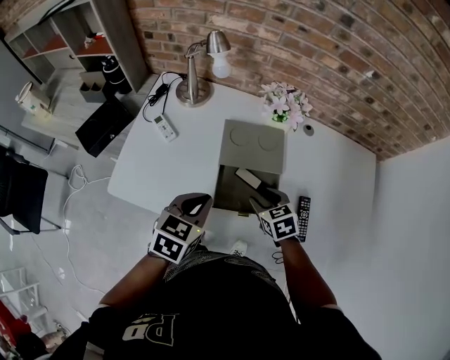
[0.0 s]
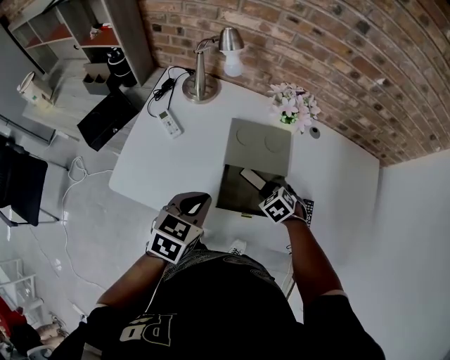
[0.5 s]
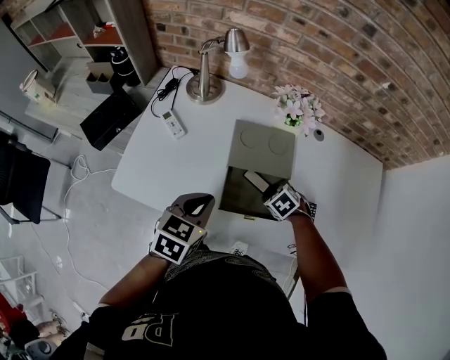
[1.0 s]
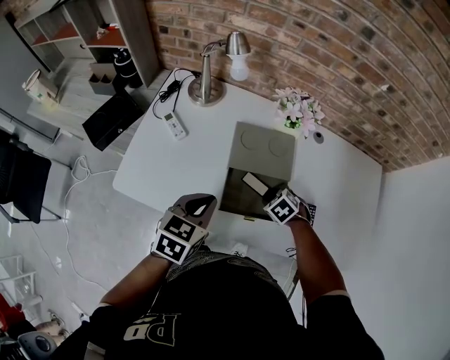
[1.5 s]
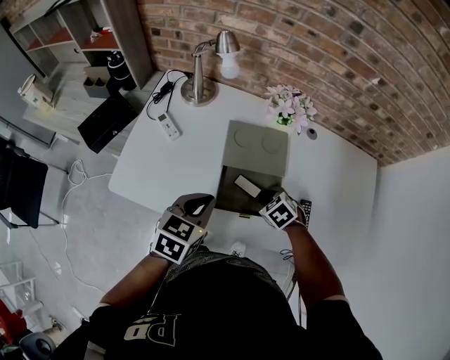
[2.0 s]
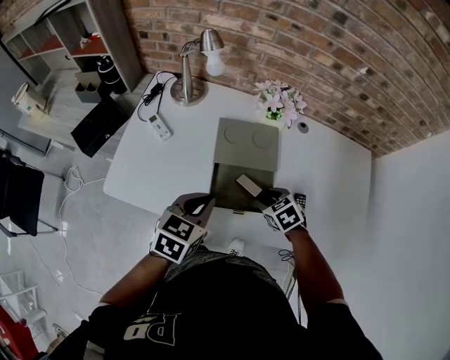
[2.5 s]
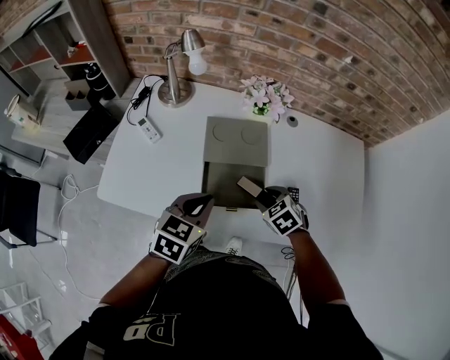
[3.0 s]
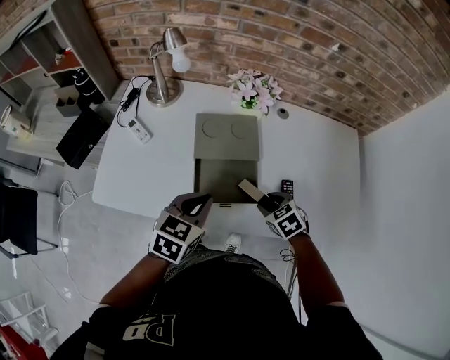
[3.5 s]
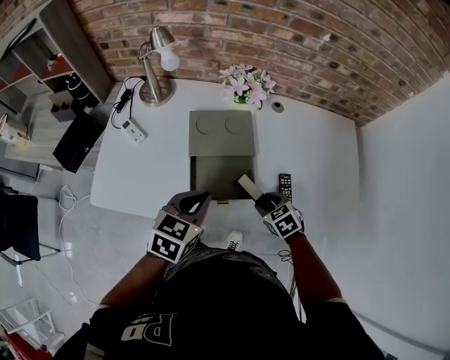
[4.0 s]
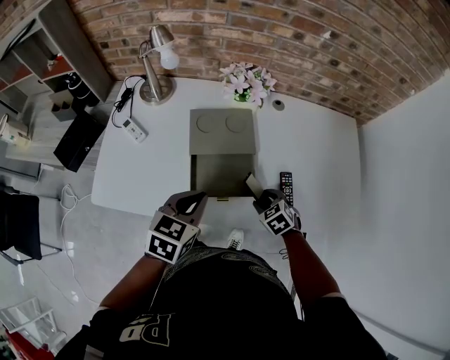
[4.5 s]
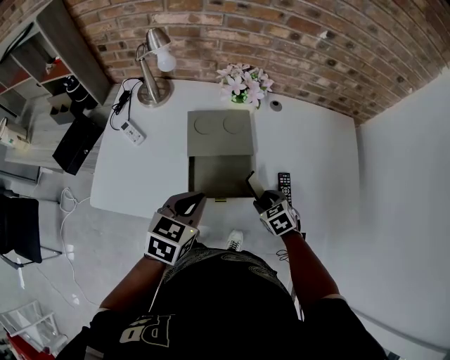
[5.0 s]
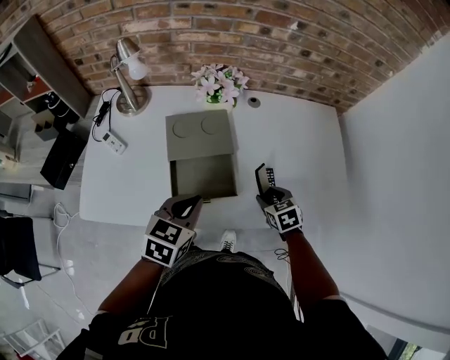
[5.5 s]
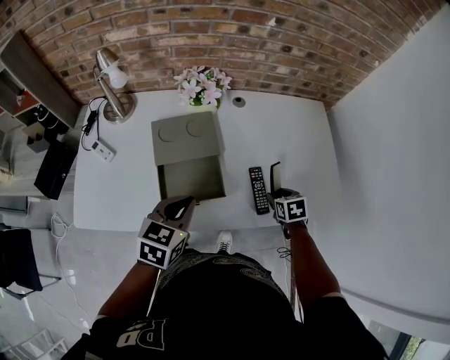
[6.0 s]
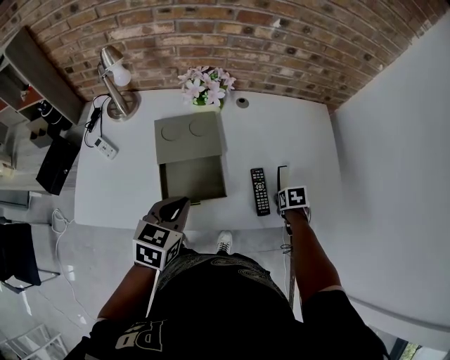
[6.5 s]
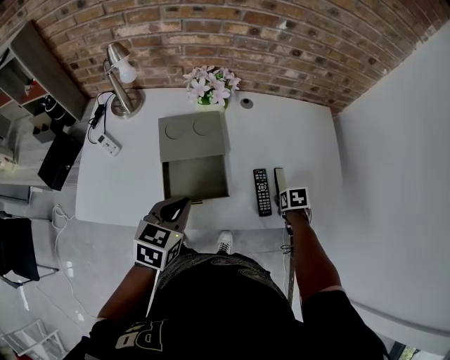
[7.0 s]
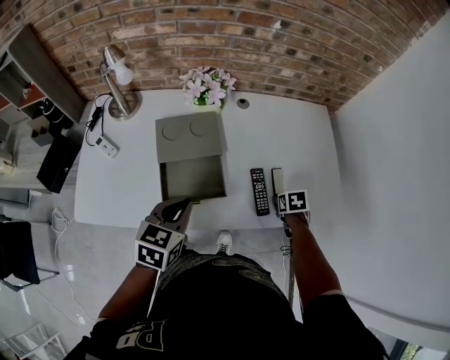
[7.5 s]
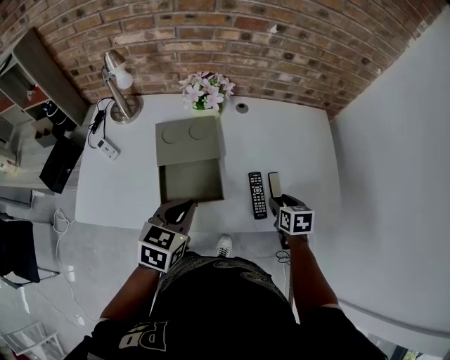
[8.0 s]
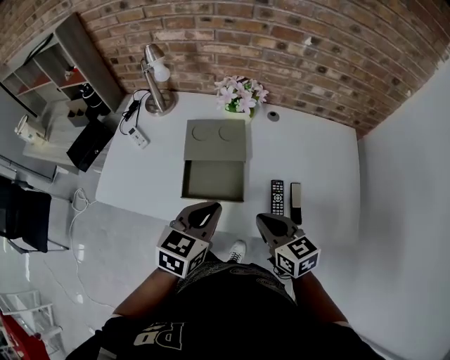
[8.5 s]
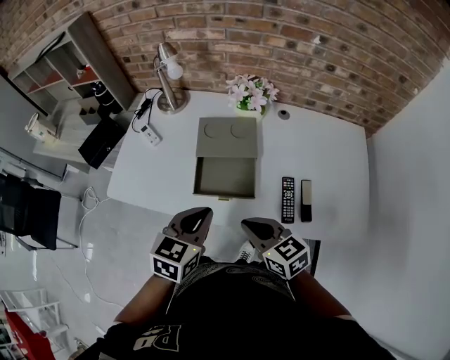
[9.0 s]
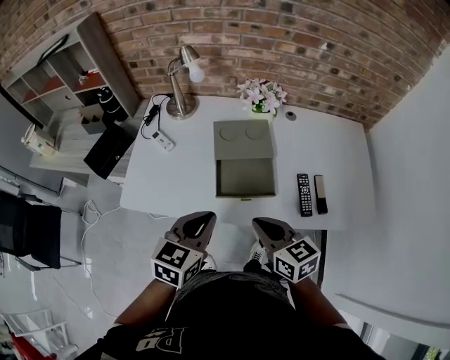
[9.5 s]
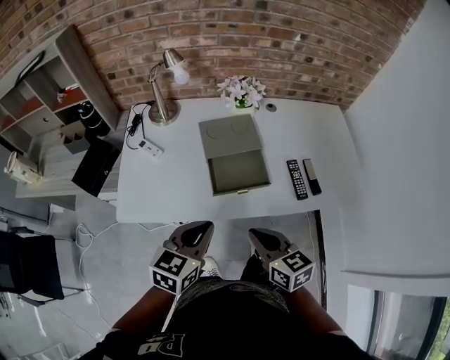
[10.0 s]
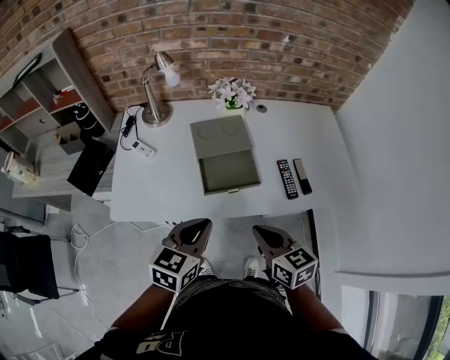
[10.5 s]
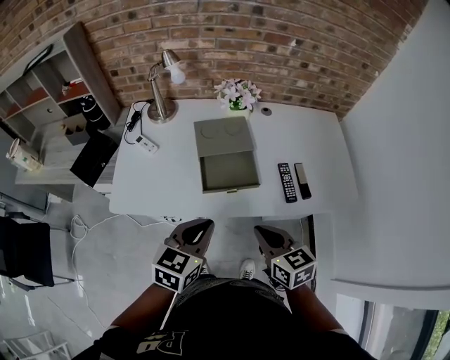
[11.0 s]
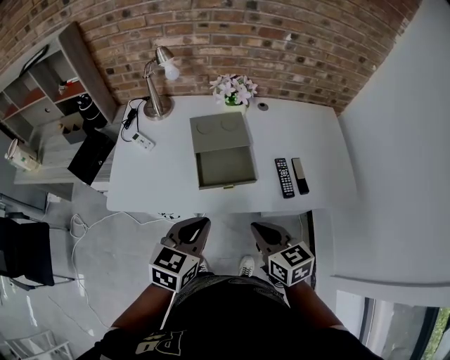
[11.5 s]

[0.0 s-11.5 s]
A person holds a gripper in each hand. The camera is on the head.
0.0 to 2.0 s: The right gripper travels downward by roughly 5 cm, and swivels roughly 30 degrees.
2.0 to 4.0 s: The right gripper goes roughly 10 cm to the right and backward; the left gripper heads to the right, covering some 10 cm.
4.0 to 6.0 s: The right gripper shifts some 15 cm to the right, and rotates about 30 degrees. Meanwhile the left gripper goes roughly 5 cm to the right.
6.0 to 7.5 s: The grippers move only a little.
7.5 to 9.5 s: The right gripper shifts by roughly 40 cm, points its fingers about 50 degrees further upward, and closes up. Meanwhile the left gripper shifts by some 15 cm.
9.5 to 11.5 s: The two grippers go roughly 5 cm backward.

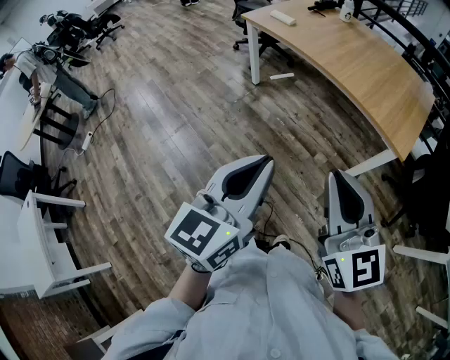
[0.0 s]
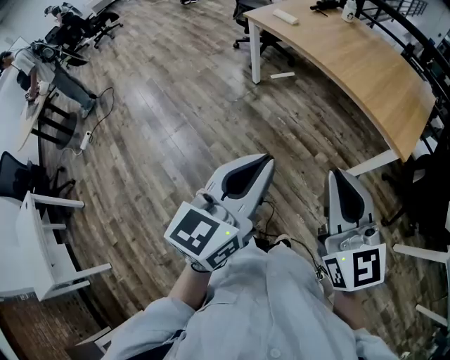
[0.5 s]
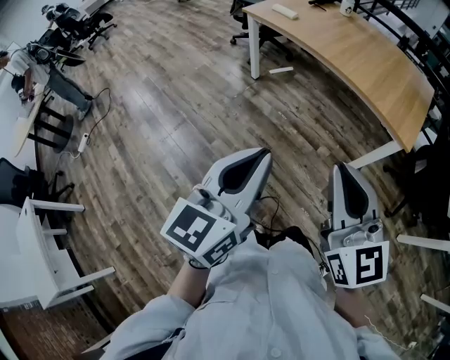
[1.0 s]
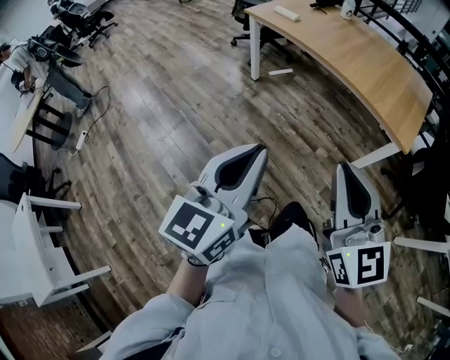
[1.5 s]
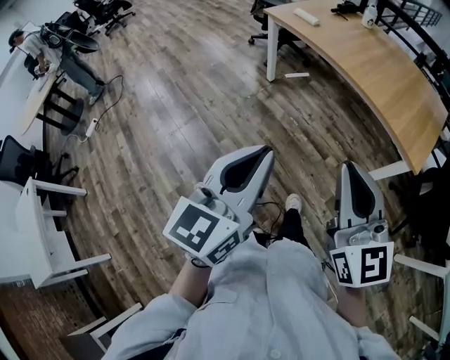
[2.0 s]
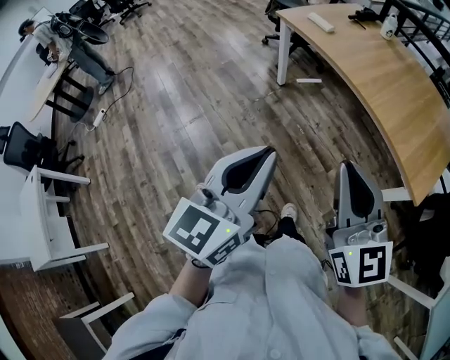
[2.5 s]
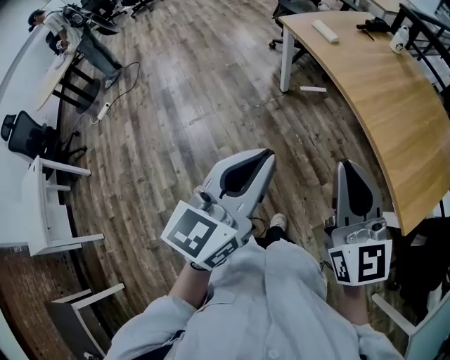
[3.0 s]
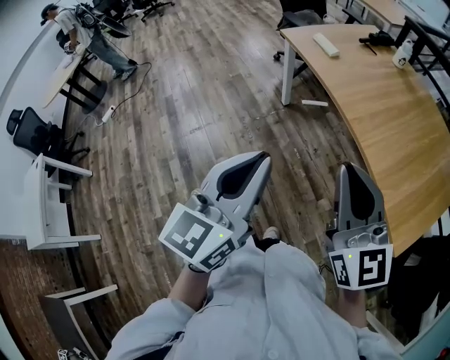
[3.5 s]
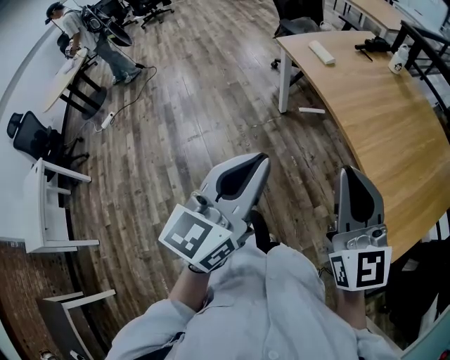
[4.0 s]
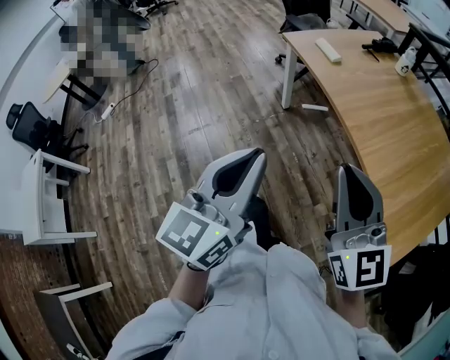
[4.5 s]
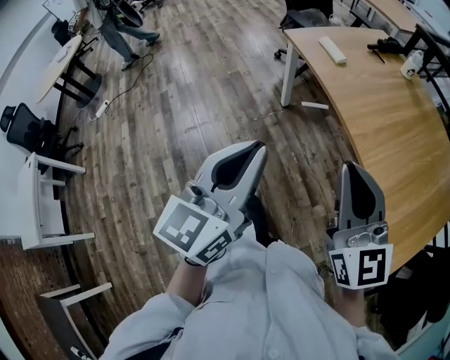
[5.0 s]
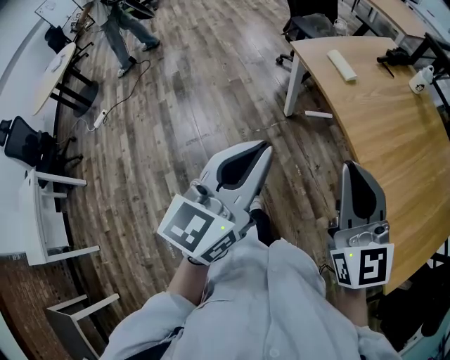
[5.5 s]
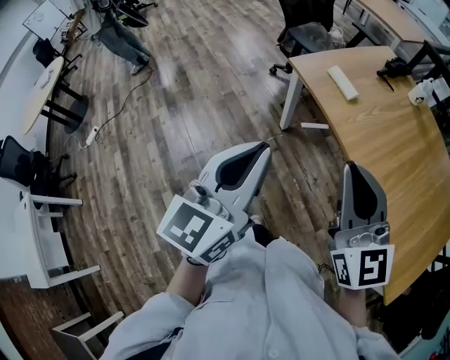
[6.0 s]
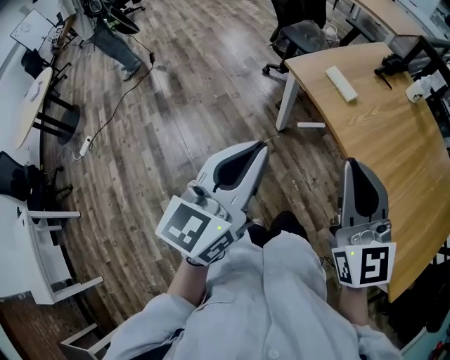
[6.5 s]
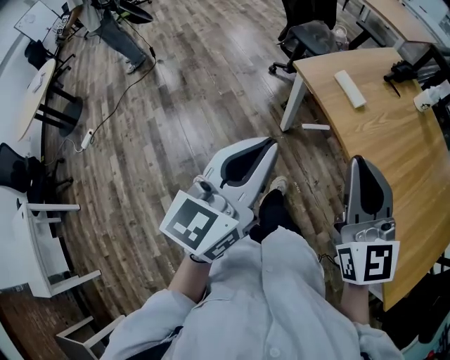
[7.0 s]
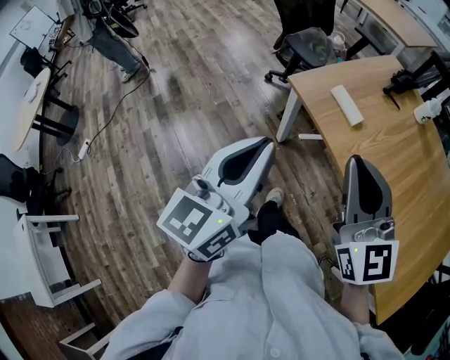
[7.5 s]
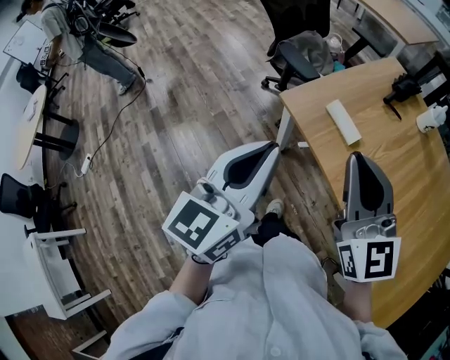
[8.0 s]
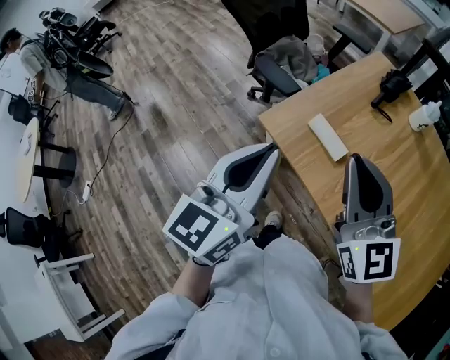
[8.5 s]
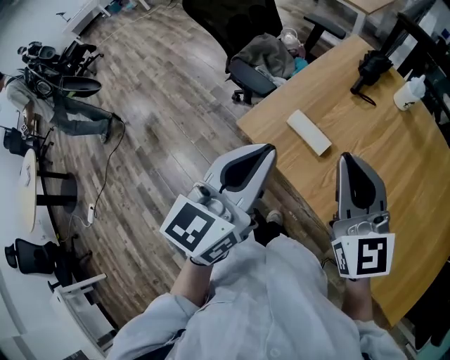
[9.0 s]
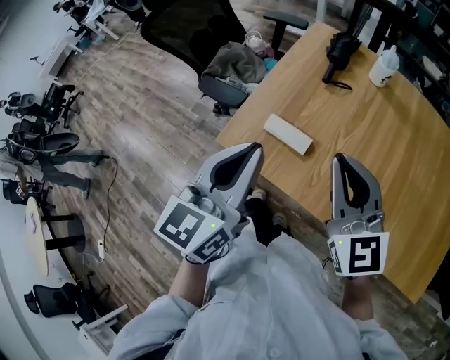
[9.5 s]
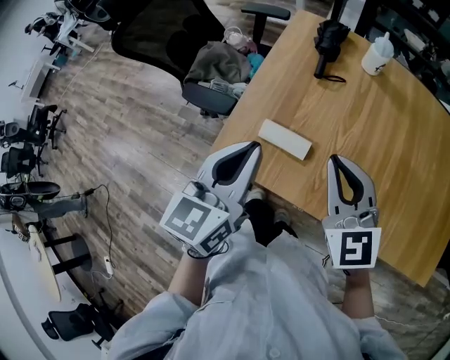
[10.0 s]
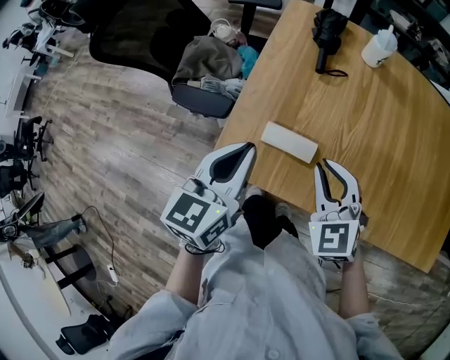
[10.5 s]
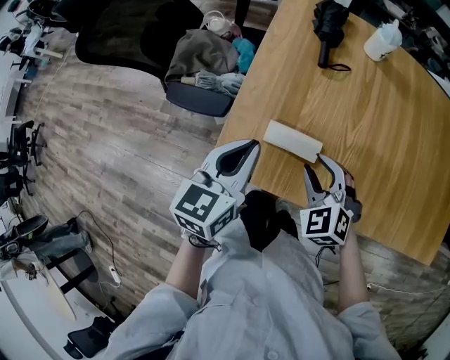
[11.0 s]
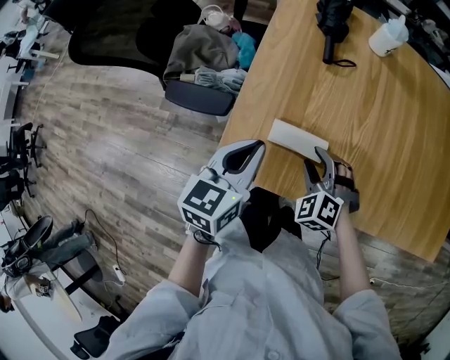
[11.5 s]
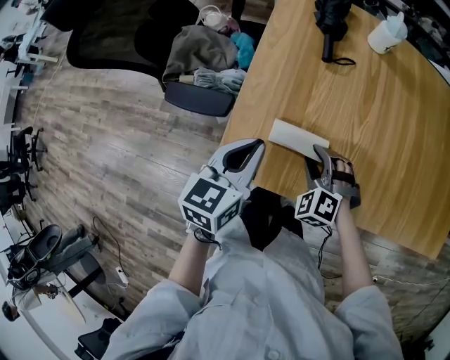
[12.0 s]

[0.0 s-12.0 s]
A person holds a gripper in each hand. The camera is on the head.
0.0 to 2.0 s: Both grippers move to the left, approximately 5 cm.
2.0 to 4.0 s: The grippers both shift forward and to the right by some 25 cm.
4.0 to 6.0 s: The grippers both shift forward and to the left by some 30 cm.
6.0 to 8.0 s: The grippers both shift forward by approximately 25 cm.
8.0 to 10.0 s: The right gripper ends up about 20 cm from where it was, and turns by about 30 degrees, while the left gripper ends up approximately 25 cm from where it was, and rotates roughly 30 degrees.
10.0 to 12.0 s: The left gripper travels downward by about 15 cm. The right gripper moves downward, roughly 25 cm, angles its fingers downward, by roughly 40 degrees, and opens.

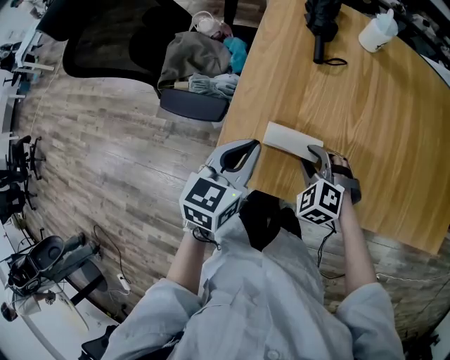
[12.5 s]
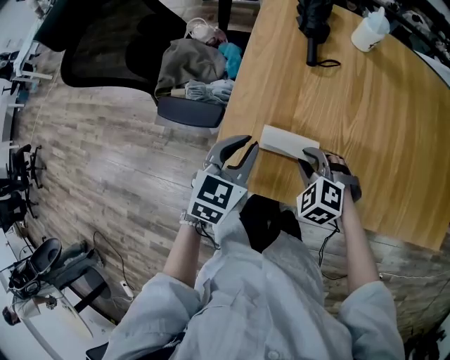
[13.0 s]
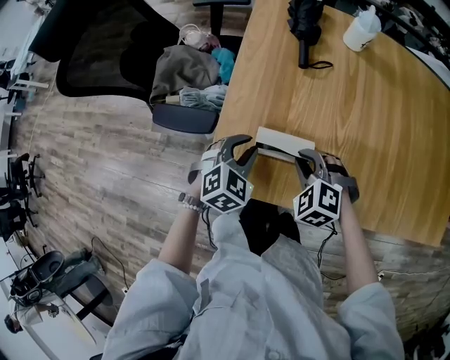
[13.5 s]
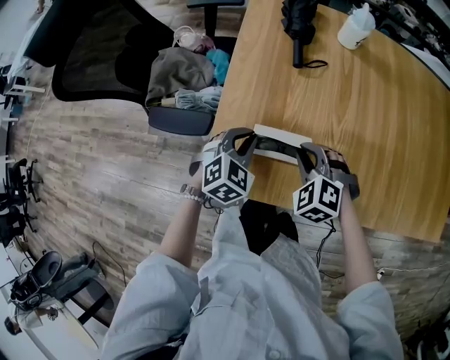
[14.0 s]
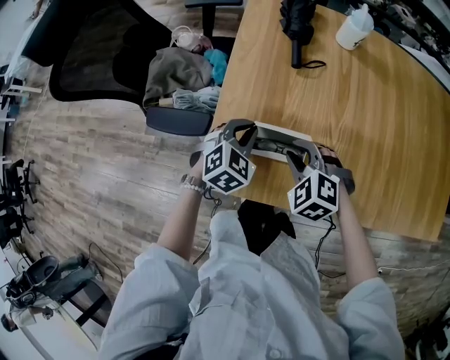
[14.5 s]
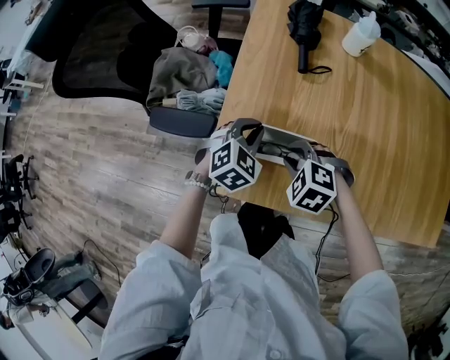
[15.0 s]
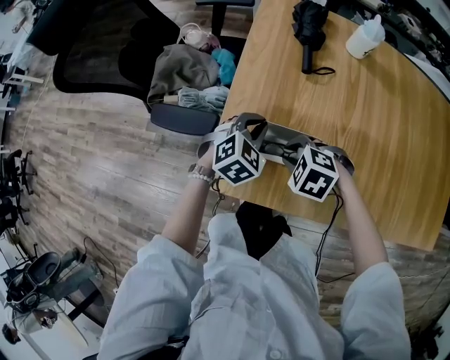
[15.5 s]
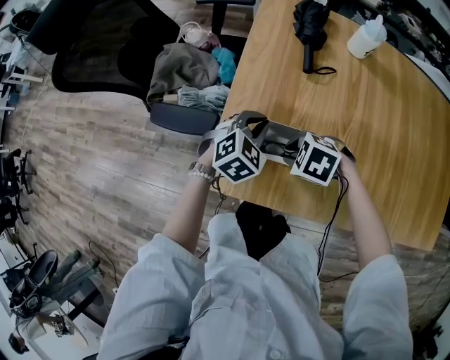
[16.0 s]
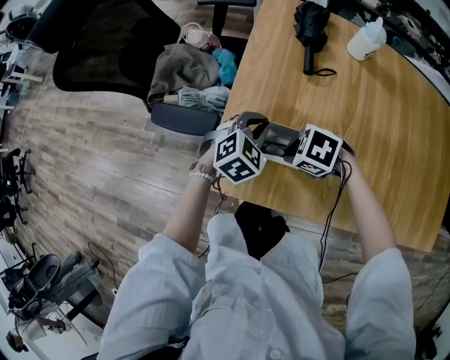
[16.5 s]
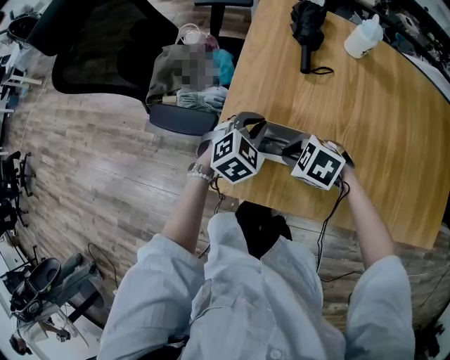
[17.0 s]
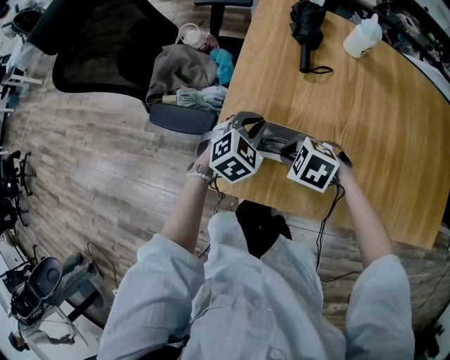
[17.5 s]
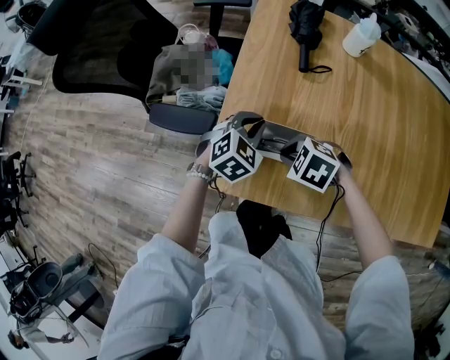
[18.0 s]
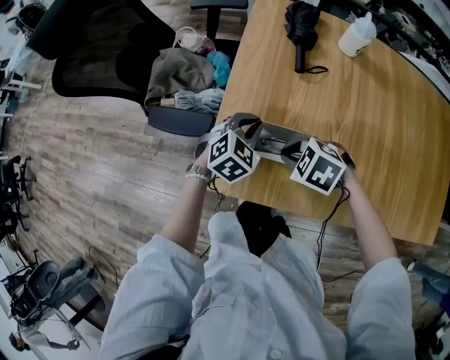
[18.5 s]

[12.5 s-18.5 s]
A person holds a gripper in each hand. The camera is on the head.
12.5 to 14.5 s: The left gripper goes about 10 cm downward and forward, and changes its angle by approximately 40 degrees.
14.5 to 16.5 s: The right gripper ends up some 5 cm from where it was, and changes its angle by about 40 degrees.
16.5 to 18.5 s: The grippers move only a little.
